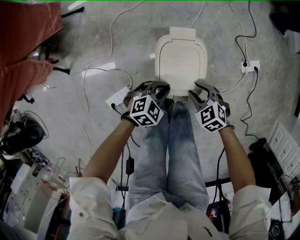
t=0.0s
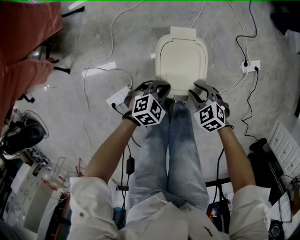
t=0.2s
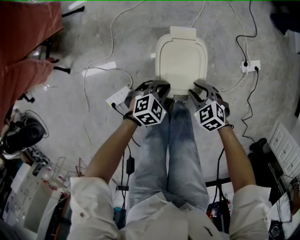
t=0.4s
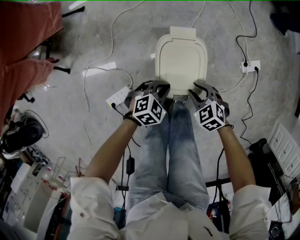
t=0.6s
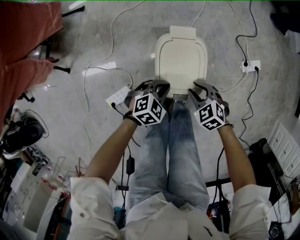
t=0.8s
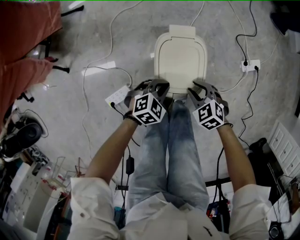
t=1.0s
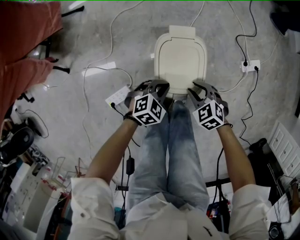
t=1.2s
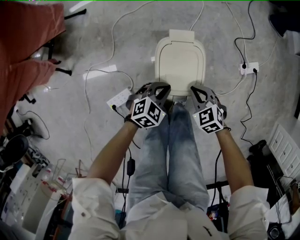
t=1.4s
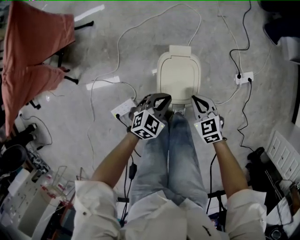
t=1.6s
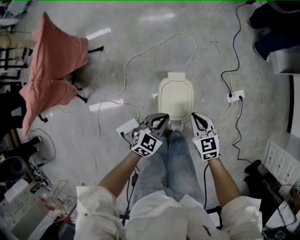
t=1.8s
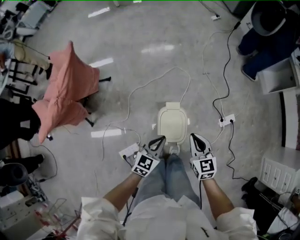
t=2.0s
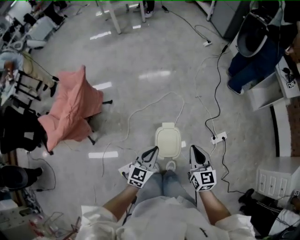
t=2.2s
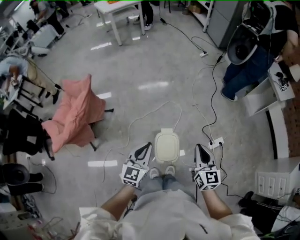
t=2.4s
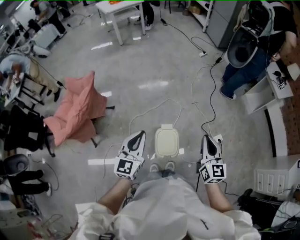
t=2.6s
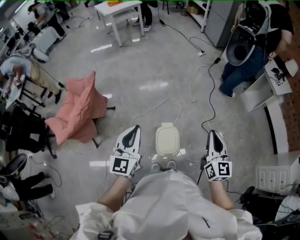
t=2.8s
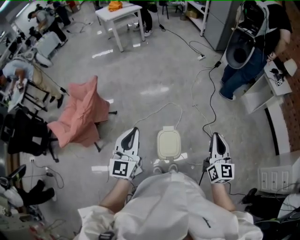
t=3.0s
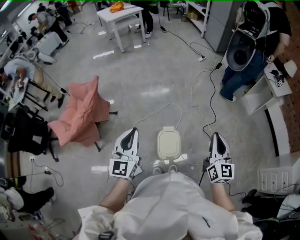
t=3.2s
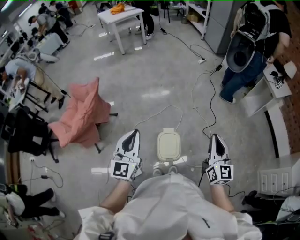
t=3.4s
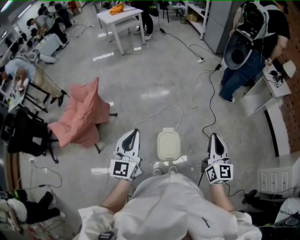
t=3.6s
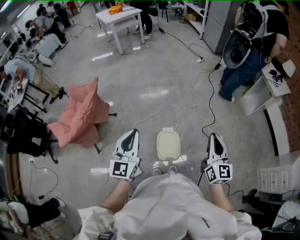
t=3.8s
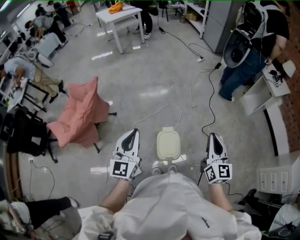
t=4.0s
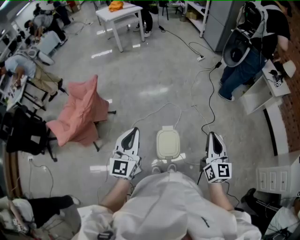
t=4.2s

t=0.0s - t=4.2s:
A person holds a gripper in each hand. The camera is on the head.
t=0.0s - t=1.4s: The grippers make only small movements.
t=1.4s - t=2.8s: Both grippers travel together upward, roughly 70 cm. The left gripper angles its fingers upward, by about 50 degrees. Meanwhile the right gripper points its fingers approximately 50 degrees further upward.
t=2.8s - t=4.2s: There are only small adjustments of the grippers.

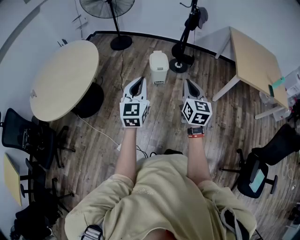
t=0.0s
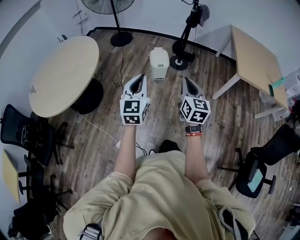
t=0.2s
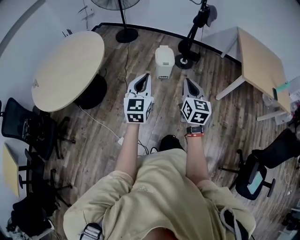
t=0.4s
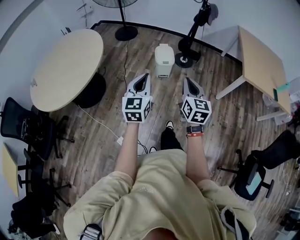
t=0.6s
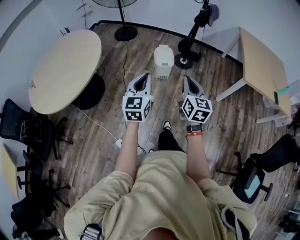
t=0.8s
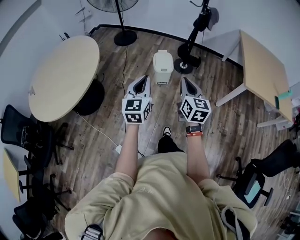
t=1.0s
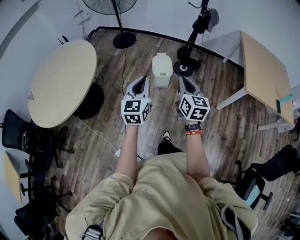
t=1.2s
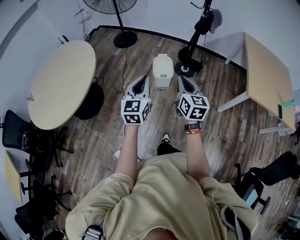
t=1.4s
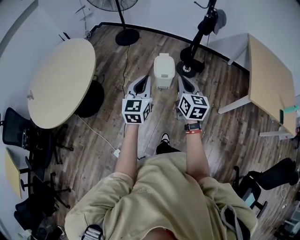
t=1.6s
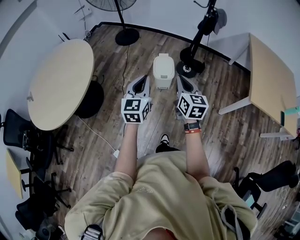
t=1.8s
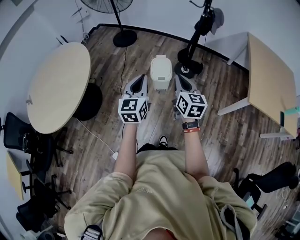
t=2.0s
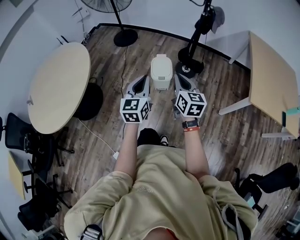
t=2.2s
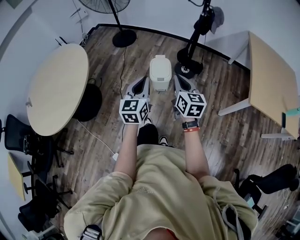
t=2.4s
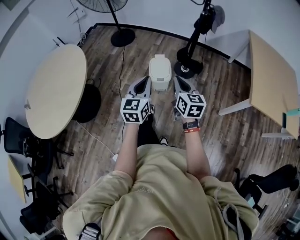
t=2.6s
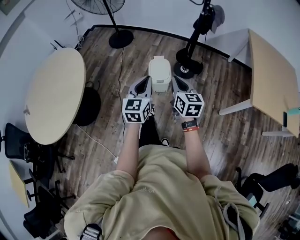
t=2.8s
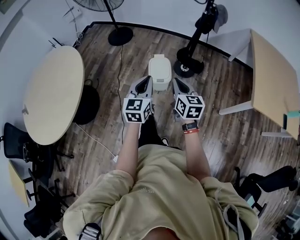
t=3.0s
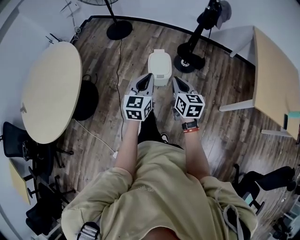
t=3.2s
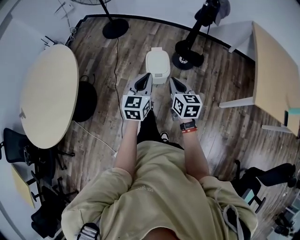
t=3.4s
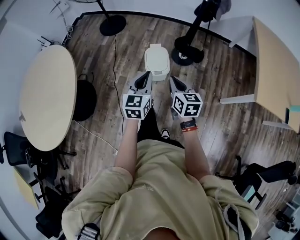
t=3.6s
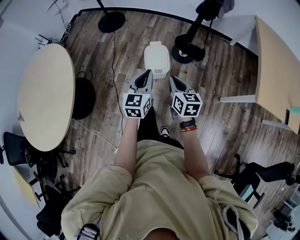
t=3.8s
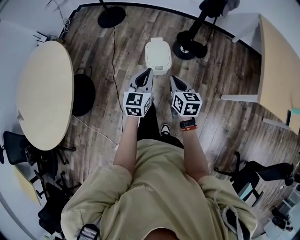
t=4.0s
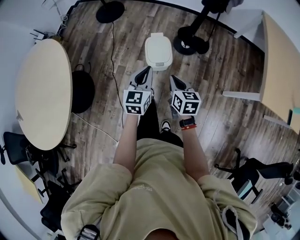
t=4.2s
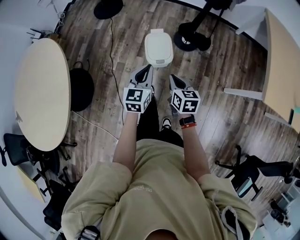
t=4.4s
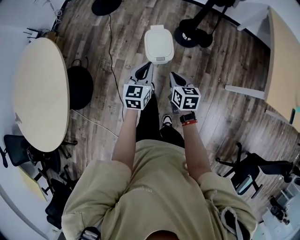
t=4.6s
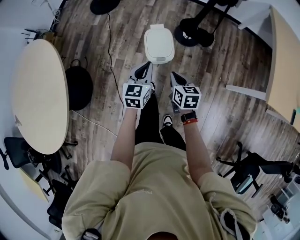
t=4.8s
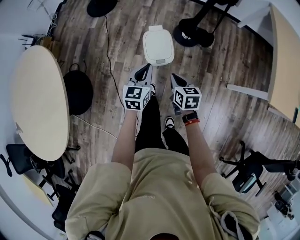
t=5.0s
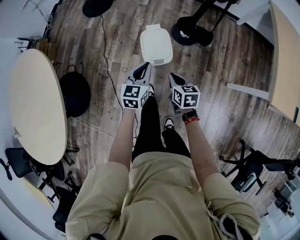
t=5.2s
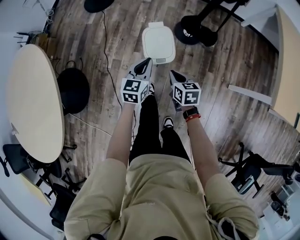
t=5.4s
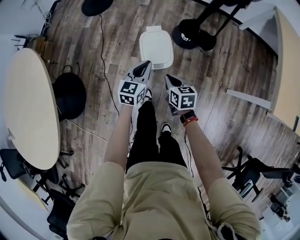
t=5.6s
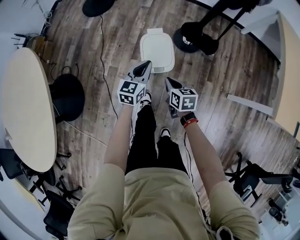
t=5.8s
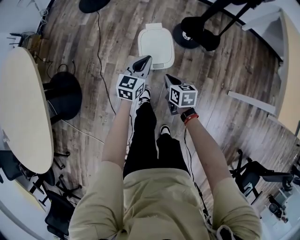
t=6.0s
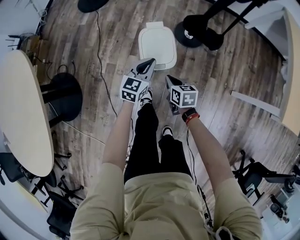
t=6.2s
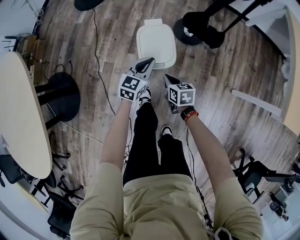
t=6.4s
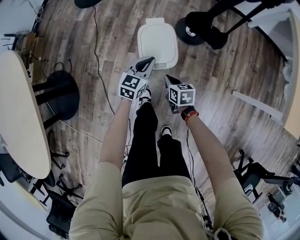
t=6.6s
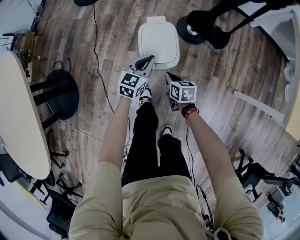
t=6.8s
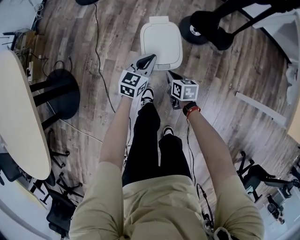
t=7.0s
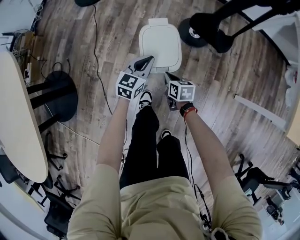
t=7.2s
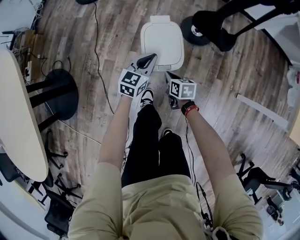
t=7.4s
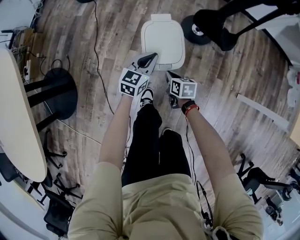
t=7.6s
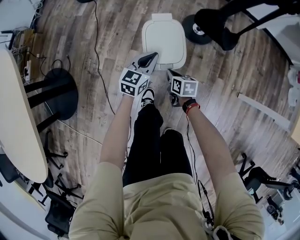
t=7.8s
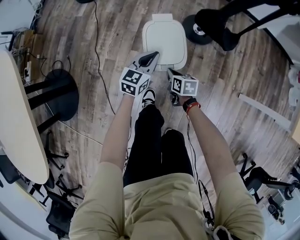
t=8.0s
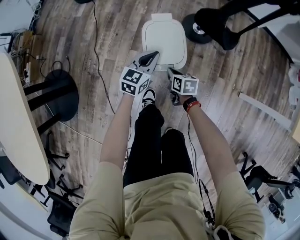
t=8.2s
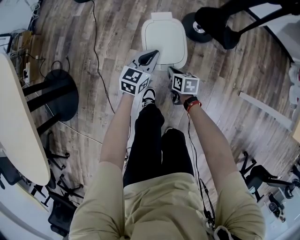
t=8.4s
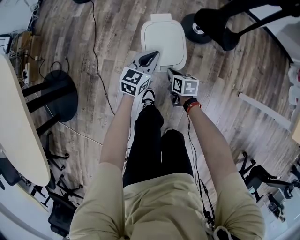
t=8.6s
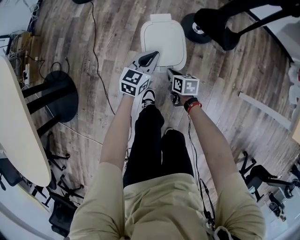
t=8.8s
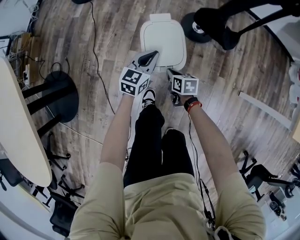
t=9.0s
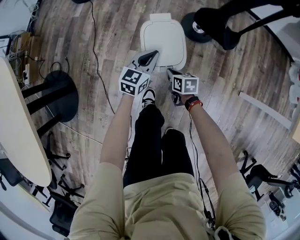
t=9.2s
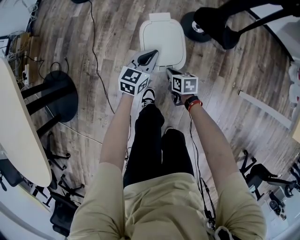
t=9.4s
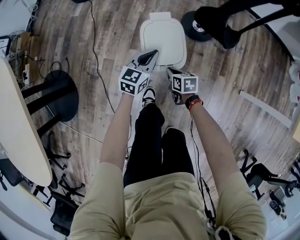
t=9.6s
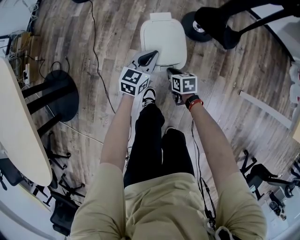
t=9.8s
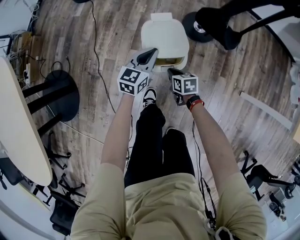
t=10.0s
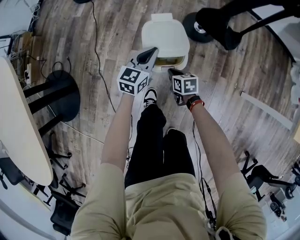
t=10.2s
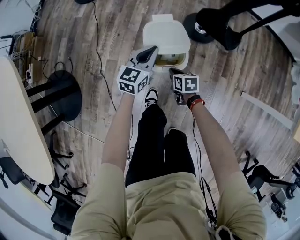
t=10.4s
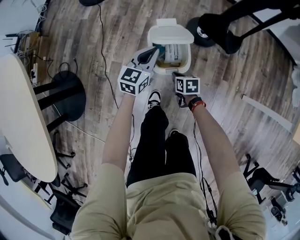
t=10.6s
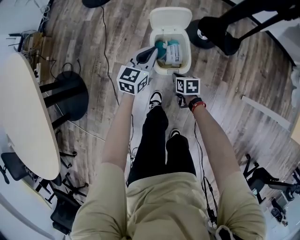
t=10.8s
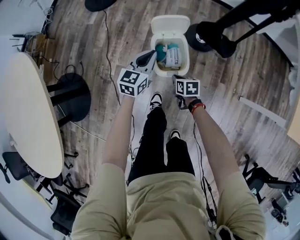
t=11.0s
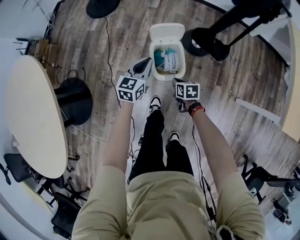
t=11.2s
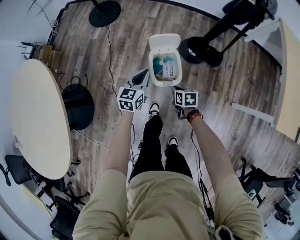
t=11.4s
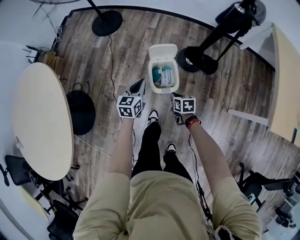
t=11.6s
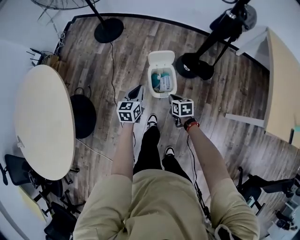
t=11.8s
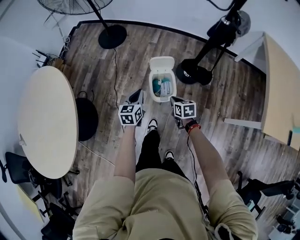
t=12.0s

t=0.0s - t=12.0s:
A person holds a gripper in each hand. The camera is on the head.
t=0.0s - t=1.6s: The grippers both shift forward by about 30 cm.
t=1.6s - t=3.0s: Both grippers move forward and downward, approximately 20 cm.
t=3.0s - t=4.4s: The left gripper moves forward and downward, some 25 cm, while the right gripper travels downward and forward by some 20 cm.
t=4.4s - t=6.0s: The two grippers go some 30 cm downward and forward.
t=6.0s - t=7.6s: Both grippers move downward, roughly 20 cm.
t=7.6s - t=10.4s: There are only small adjustments of the grippers.
t=10.4s - t=12.0s: Both grippers travel together upward, about 35 cm. The left gripper rotates approximately 20 degrees.

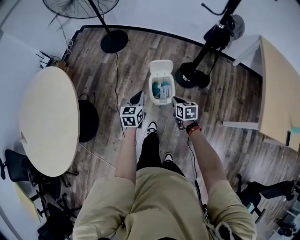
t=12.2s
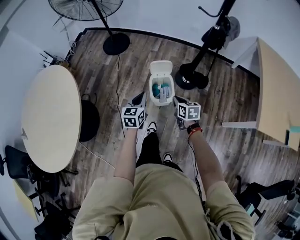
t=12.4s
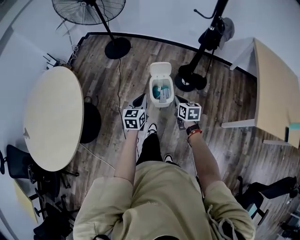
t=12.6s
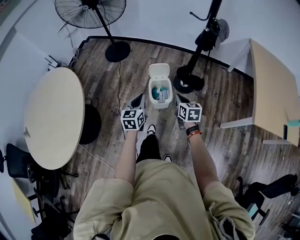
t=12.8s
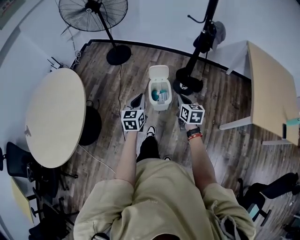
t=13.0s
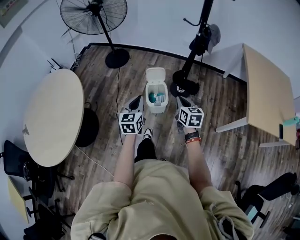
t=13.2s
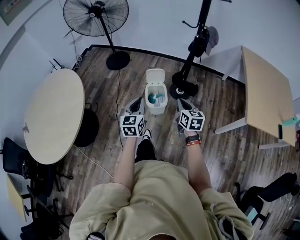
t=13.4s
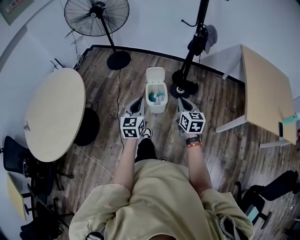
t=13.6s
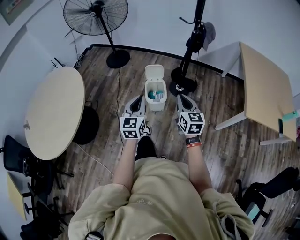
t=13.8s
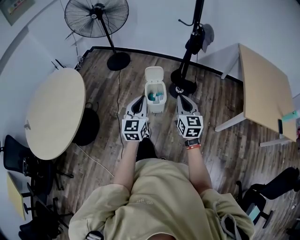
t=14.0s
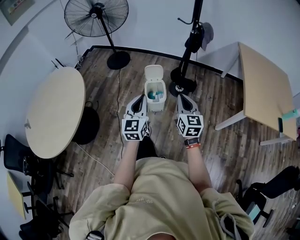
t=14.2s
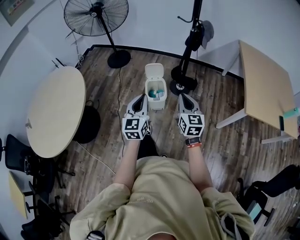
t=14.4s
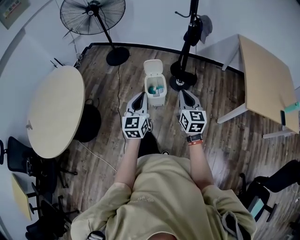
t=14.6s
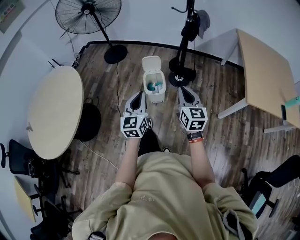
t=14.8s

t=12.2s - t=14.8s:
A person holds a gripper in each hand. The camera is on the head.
t=12.2s - t=13.4s: The left gripper travels backward and upward by approximately 30 cm. The right gripper goes about 30 cm upward and backward, and changes its angle by some 20 degrees.
t=13.4s - t=14.8s: The left gripper travels backward and to the right by about 10 cm. Meanwhile the right gripper goes some 10 cm backward and upward.

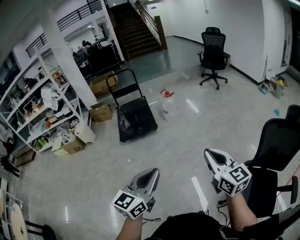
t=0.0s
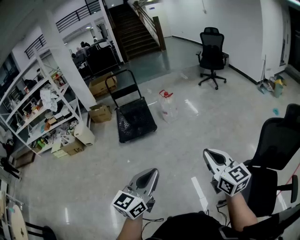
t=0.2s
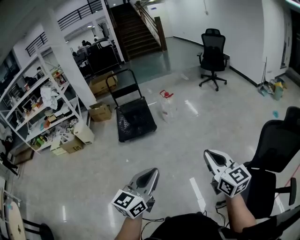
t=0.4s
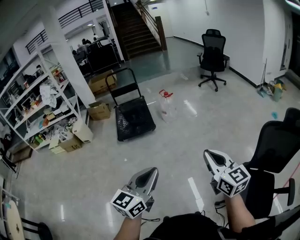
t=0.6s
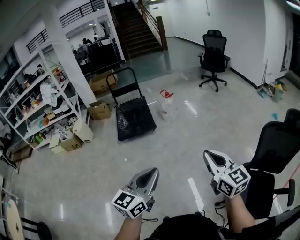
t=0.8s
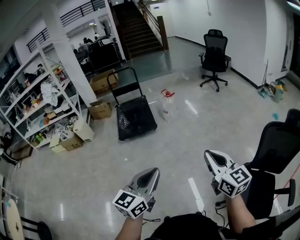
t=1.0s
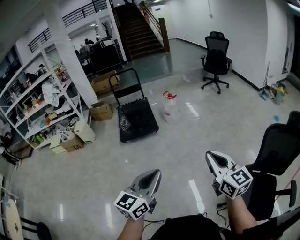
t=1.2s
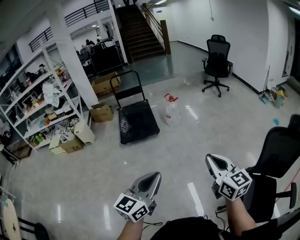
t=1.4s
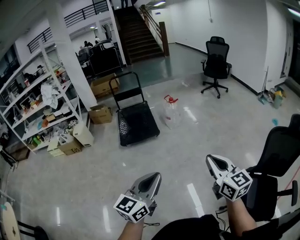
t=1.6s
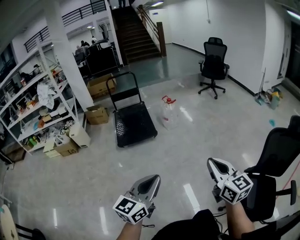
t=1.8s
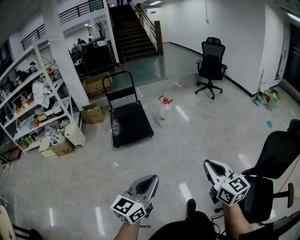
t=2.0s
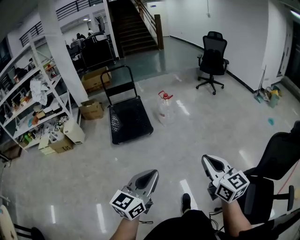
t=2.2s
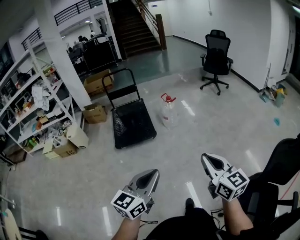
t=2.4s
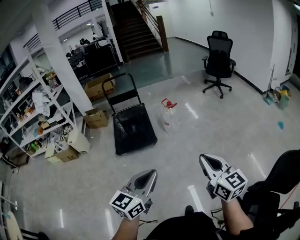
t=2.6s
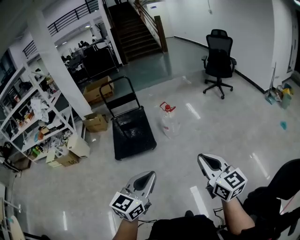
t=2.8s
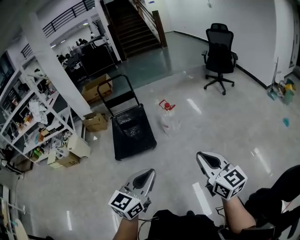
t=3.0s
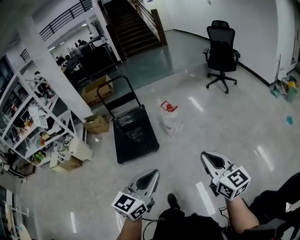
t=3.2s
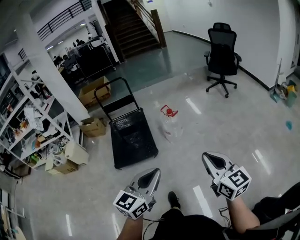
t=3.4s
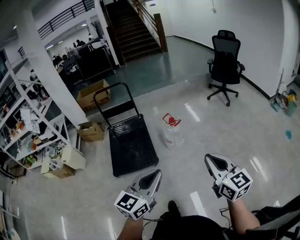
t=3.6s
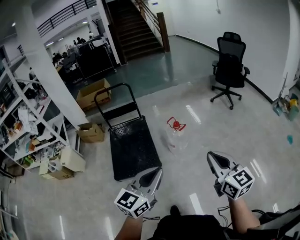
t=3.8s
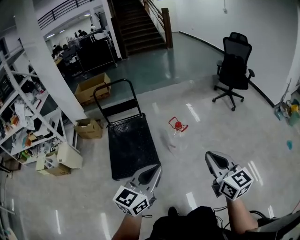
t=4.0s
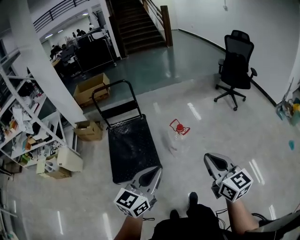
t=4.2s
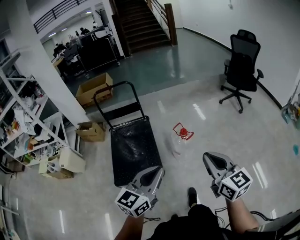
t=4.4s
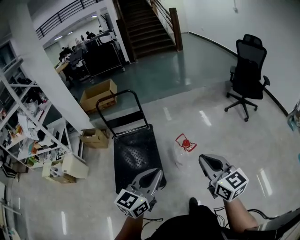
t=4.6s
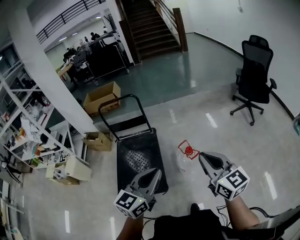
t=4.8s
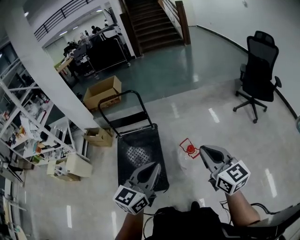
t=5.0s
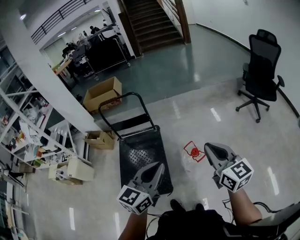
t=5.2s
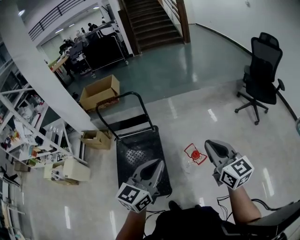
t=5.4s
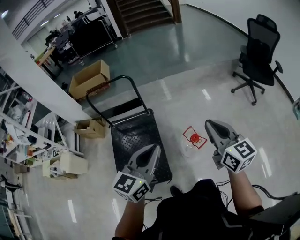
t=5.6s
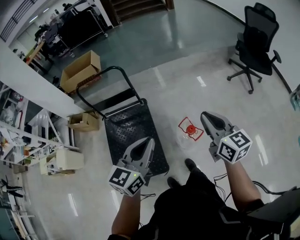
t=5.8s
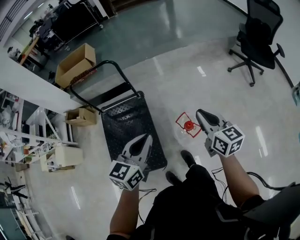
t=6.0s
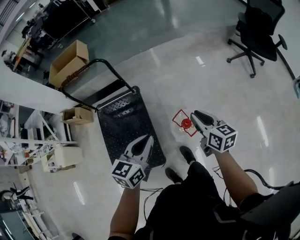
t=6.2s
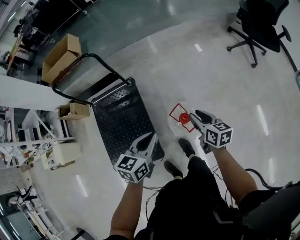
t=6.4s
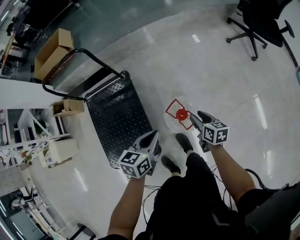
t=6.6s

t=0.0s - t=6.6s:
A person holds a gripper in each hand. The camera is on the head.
t=0.0s - t=1.6s: Both grippers travel together to the left, some 10 cm.
t=1.6s - t=3.2s: The pair of grippers is taken forward, roughly 40 cm.
t=3.2s - t=5.0s: Both grippers are carried forward, roughly 60 cm.
t=5.0s - t=6.6s: The two grippers go roughly 50 cm downward and forward. The right gripper tips its fingers downward by about 40 degrees, and opens. The left gripper changes its angle by about 40 degrees.
